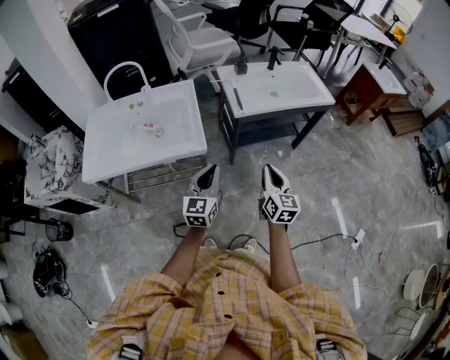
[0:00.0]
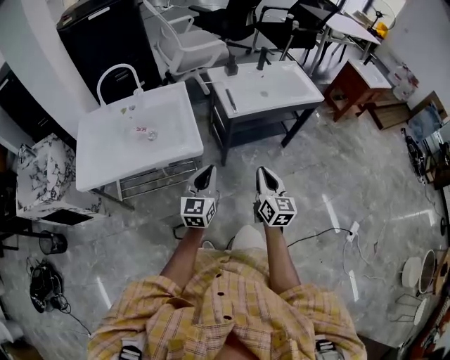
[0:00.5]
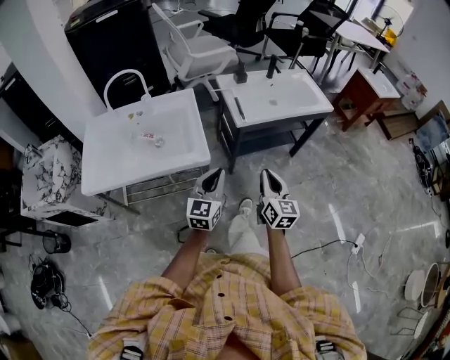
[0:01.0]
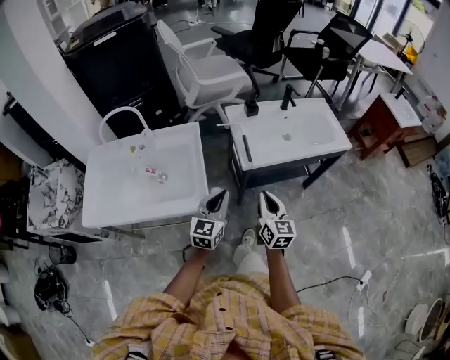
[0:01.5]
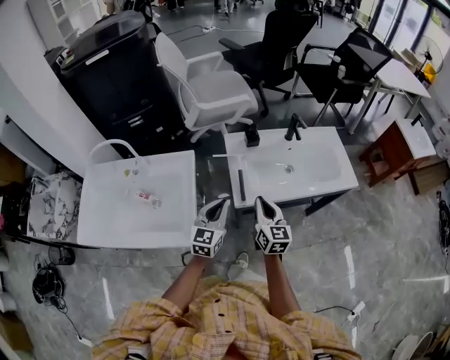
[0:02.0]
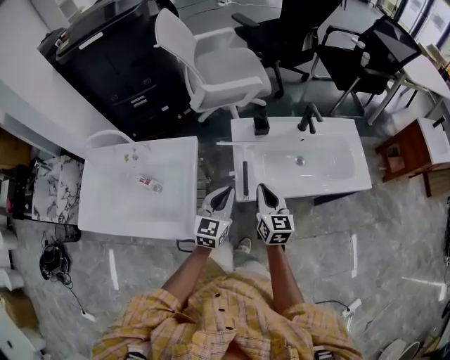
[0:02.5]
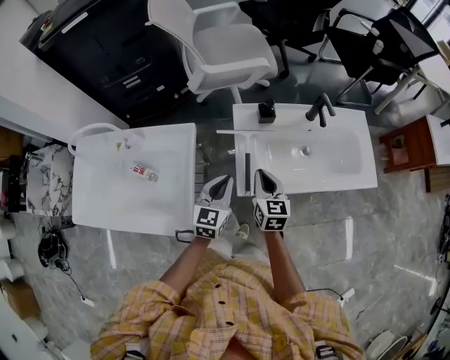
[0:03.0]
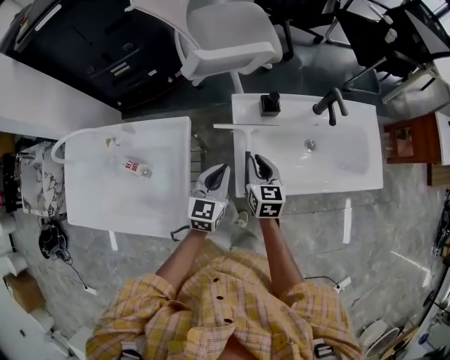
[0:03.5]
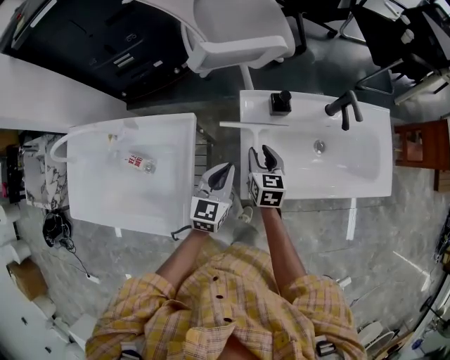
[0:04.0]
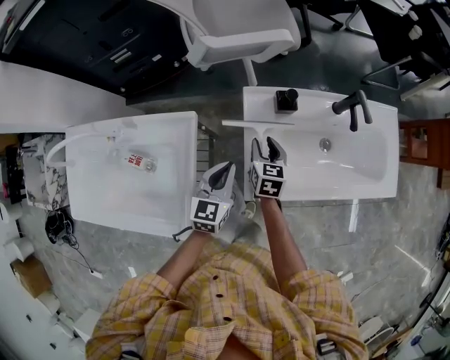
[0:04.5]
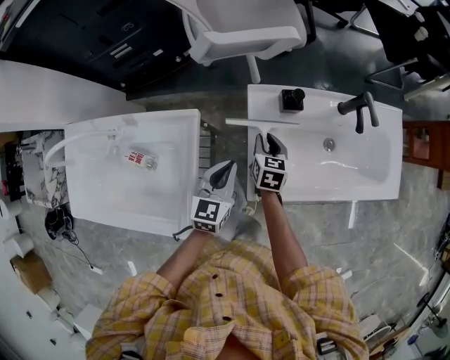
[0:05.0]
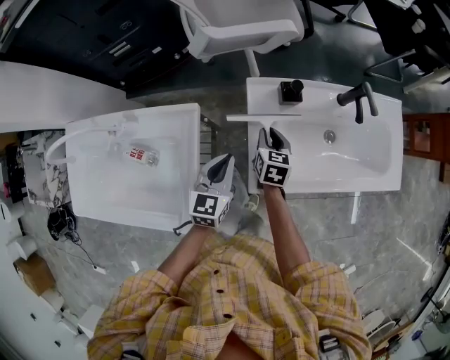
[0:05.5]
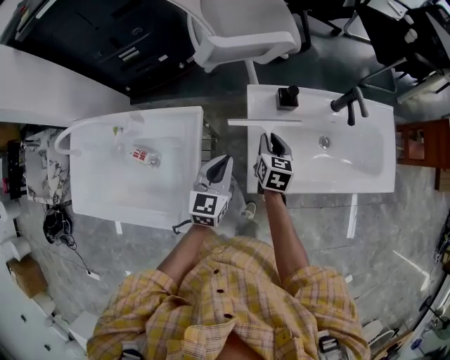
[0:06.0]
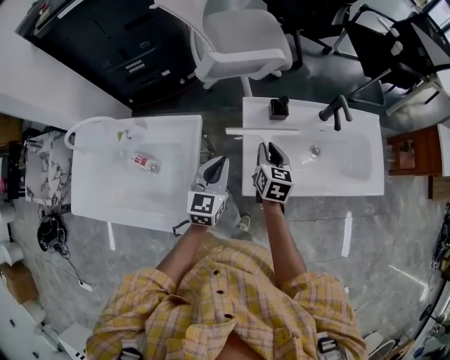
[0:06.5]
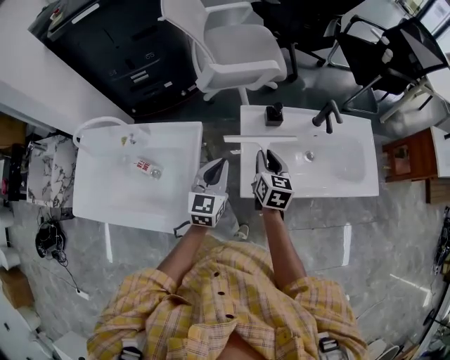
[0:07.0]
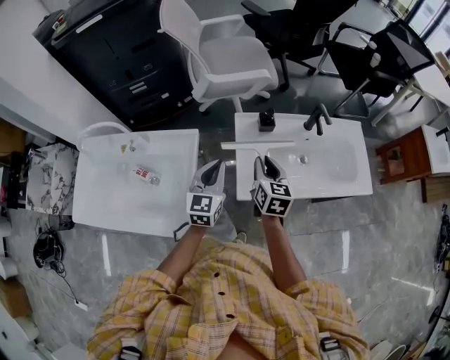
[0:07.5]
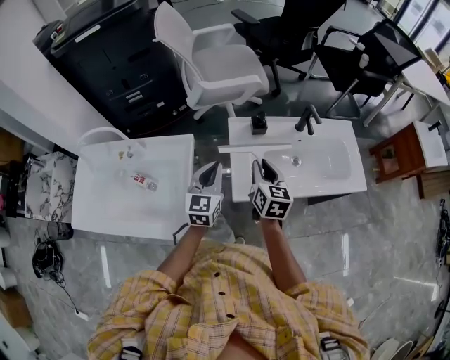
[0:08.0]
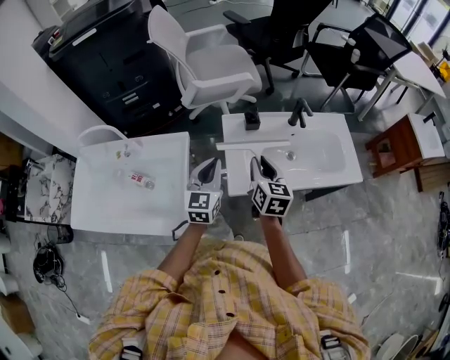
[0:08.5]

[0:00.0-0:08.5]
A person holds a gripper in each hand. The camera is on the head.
0:00.0 to 0:02.0: Both grippers move forward, approximately 35 cm.
0:02.0 to 0:04.0: The grippers both shift forward and downward by approximately 20 cm. The right gripper changes its angle by roughly 20 degrees, and opens its fingers.
0:04.0 to 0:06.5: The grippers both shift upward by about 5 cm.
0:06.5 to 0:08.5: The left gripper travels upward by roughly 10 cm; the right gripper is displaced upward and backward by approximately 15 cm.

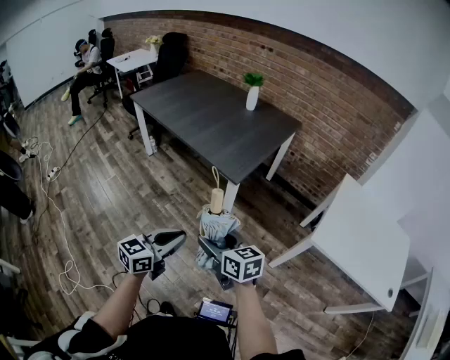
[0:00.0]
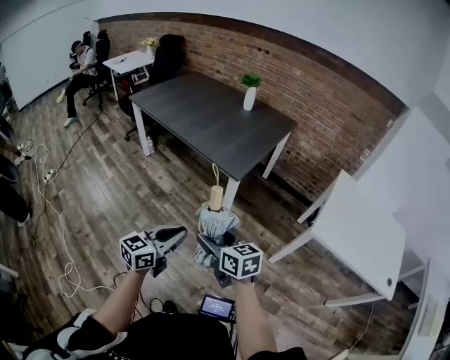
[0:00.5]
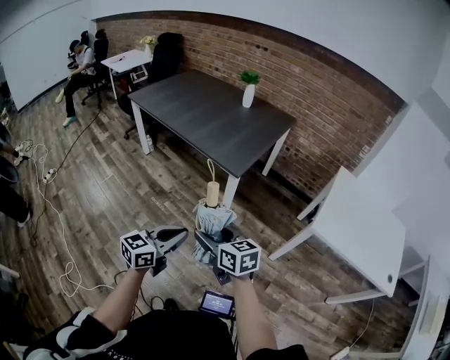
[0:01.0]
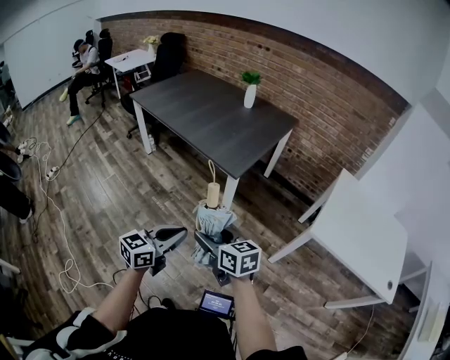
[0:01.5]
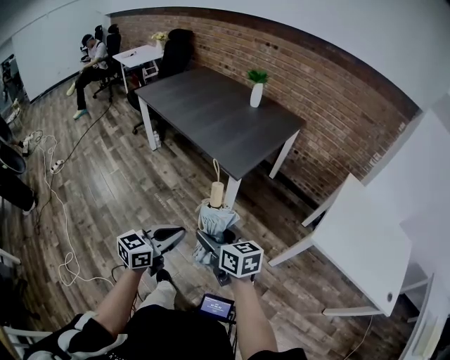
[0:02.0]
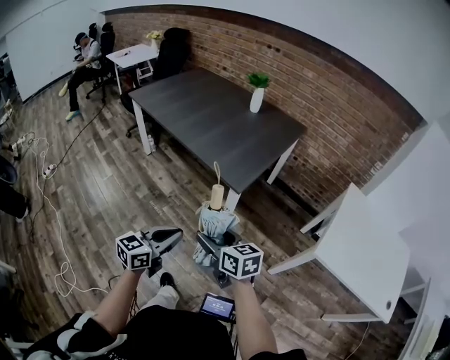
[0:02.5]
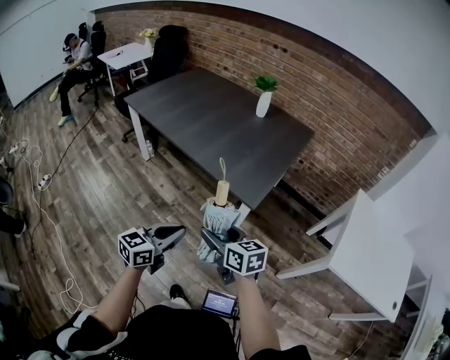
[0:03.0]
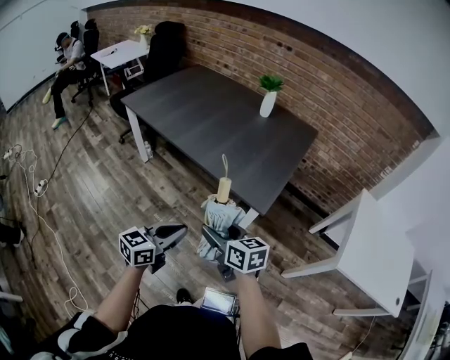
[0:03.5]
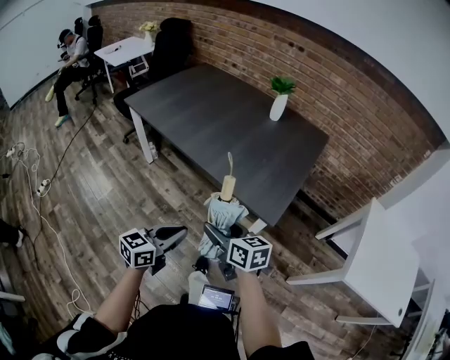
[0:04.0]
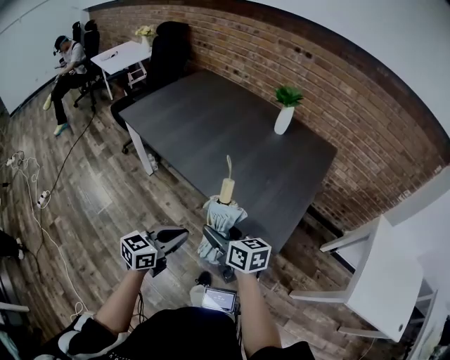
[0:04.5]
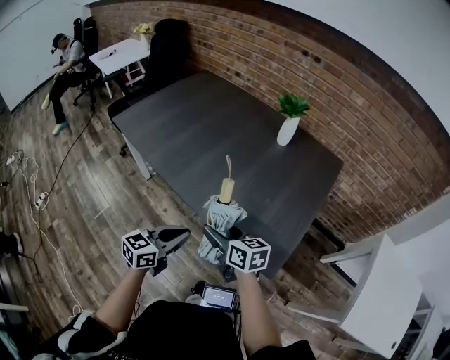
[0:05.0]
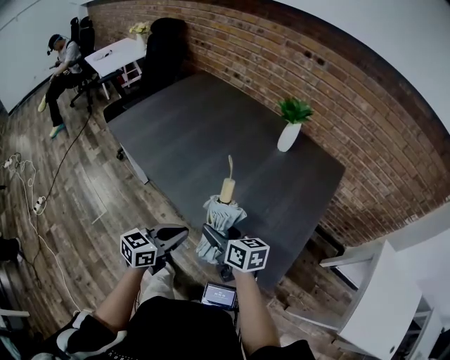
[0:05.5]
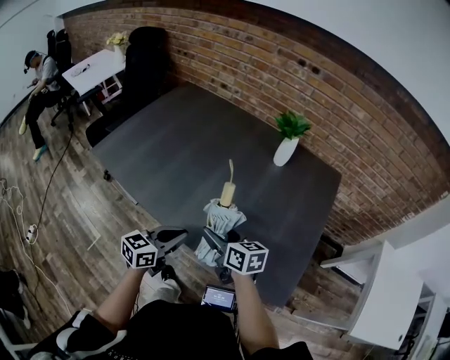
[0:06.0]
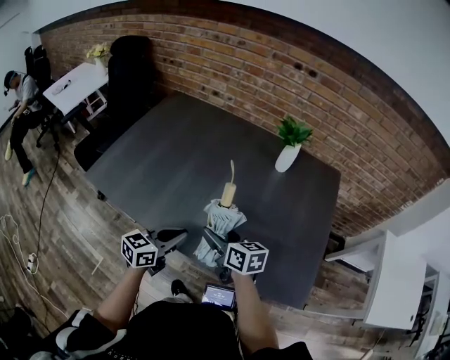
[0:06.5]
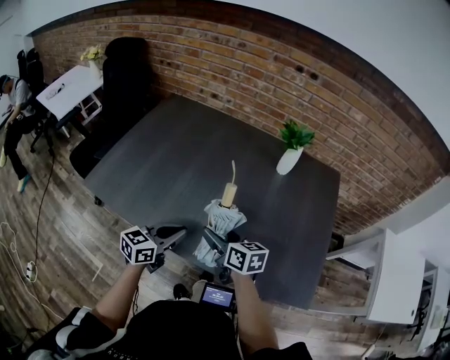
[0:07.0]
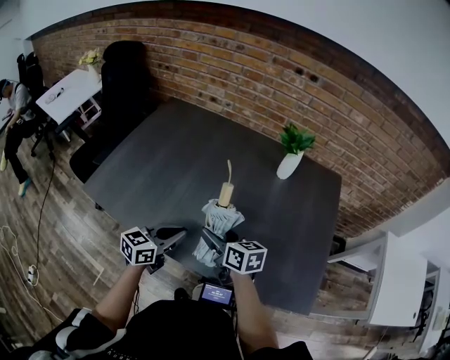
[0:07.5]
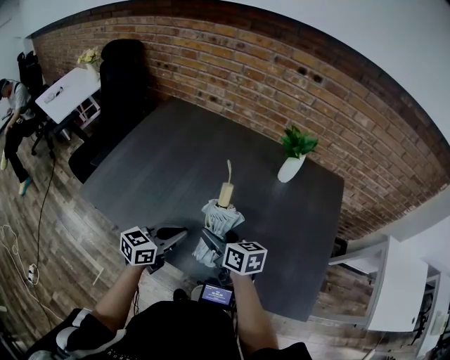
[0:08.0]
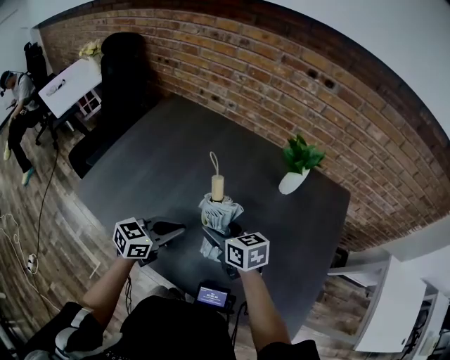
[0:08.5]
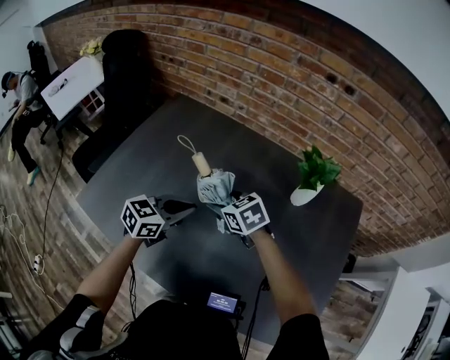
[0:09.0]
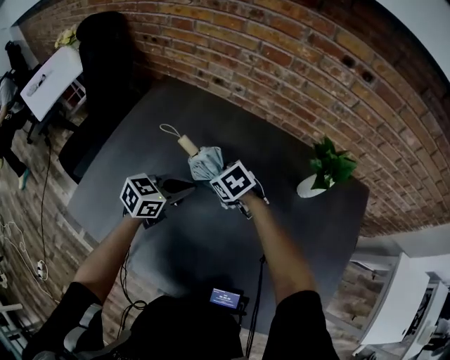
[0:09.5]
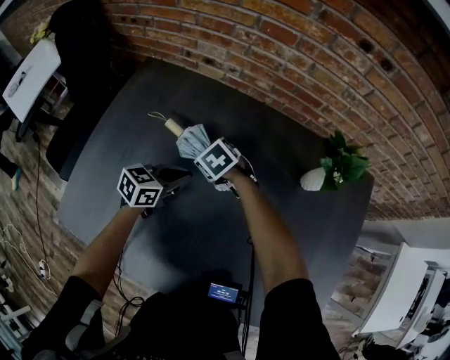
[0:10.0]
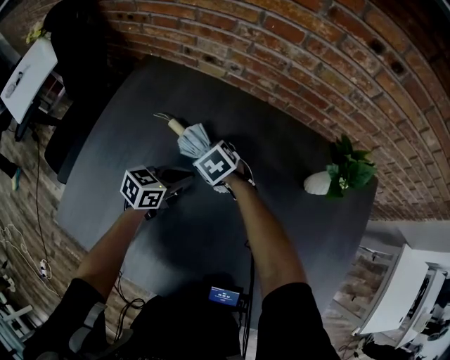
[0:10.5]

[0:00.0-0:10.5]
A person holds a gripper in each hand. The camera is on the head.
0:00.0 to 0:02.0: The grippers make only small movements.
0:02.0 to 0:04.0: Both grippers move forward and to the left, roughly 35 cm.
0:04.0 to 0:06.5: Both grippers are carried forward, approximately 50 cm.
0:06.5 to 0:08.5: The two grippers go approximately 15 cm forward.
0:08.5 to 0:10.5: Both grippers travel together forward and downward, some 35 cm. The right gripper tilts its fingers approximately 30 degrees downward.

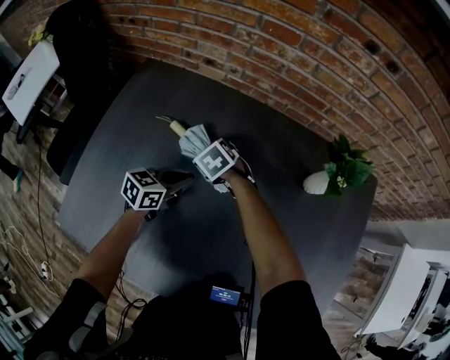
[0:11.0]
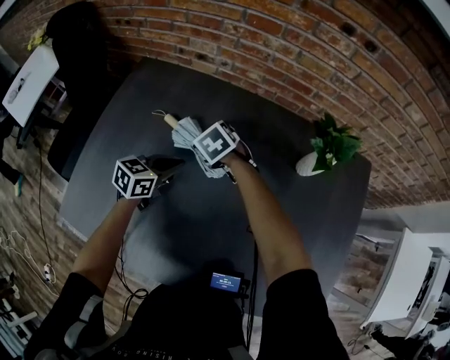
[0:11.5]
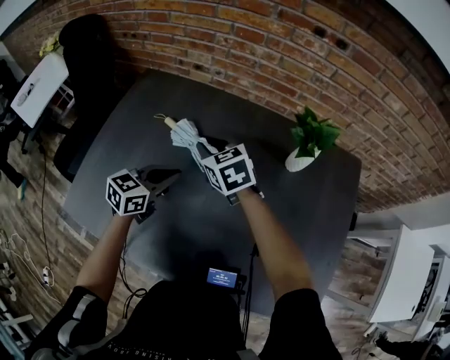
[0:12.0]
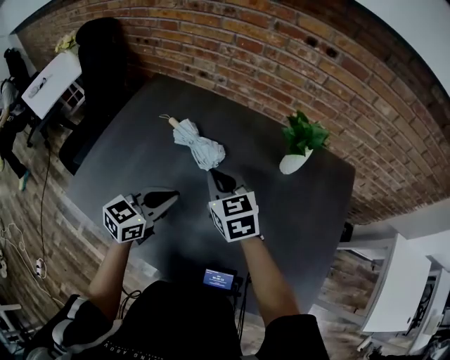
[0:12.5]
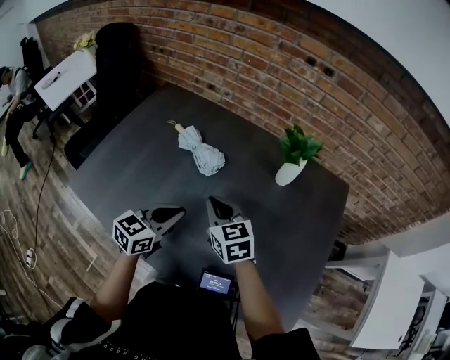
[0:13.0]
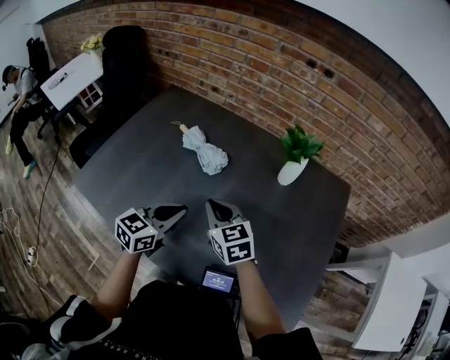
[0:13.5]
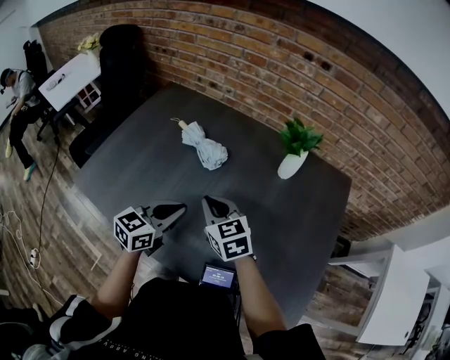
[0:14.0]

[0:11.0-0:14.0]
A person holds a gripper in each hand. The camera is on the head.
0:11.0 to 0:12.5: The right gripper shifts roughly 30 cm upward, backward and to the right, tips its fingers upward by approximately 40 degrees, and closes. Meanwhile the left gripper travels backward and upward by approximately 25 cm, and turns by about 20 degrees.
0:12.5 to 0:14.0: Both grippers travel together backward, roughly 10 cm.

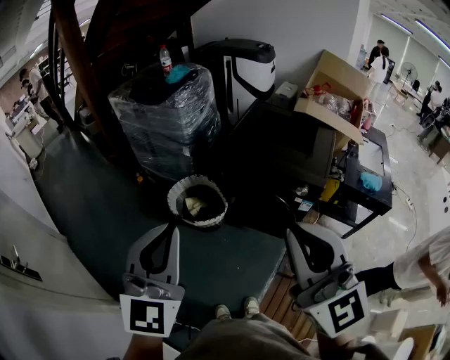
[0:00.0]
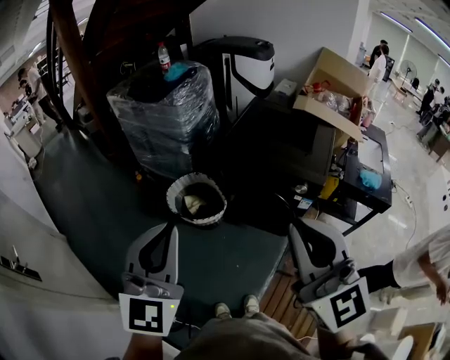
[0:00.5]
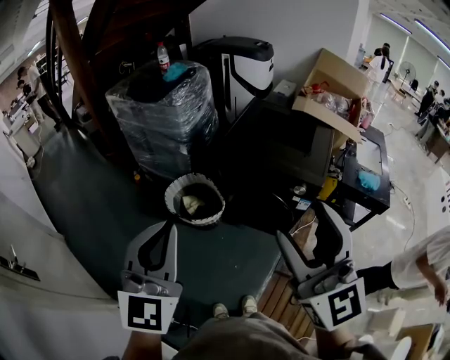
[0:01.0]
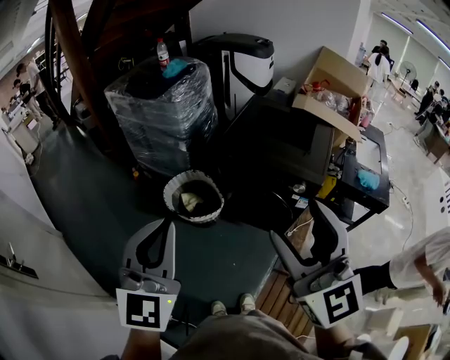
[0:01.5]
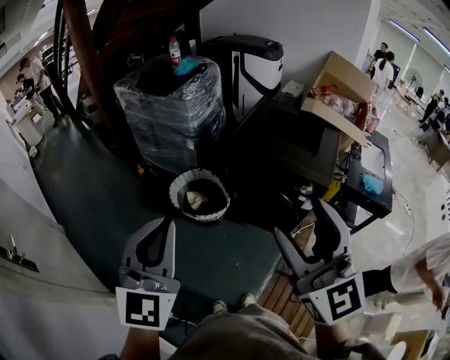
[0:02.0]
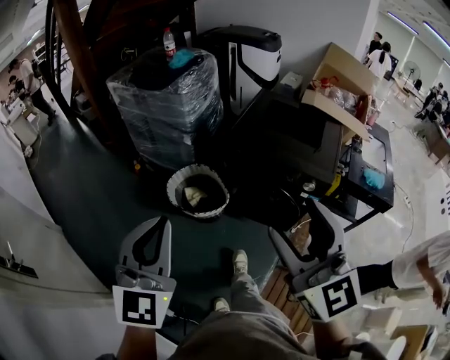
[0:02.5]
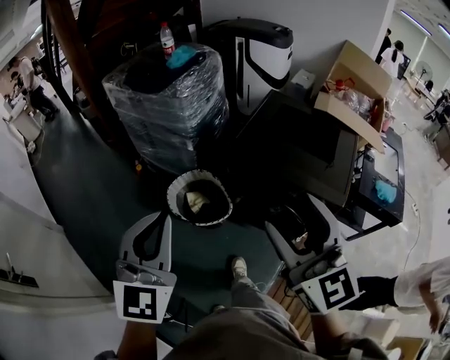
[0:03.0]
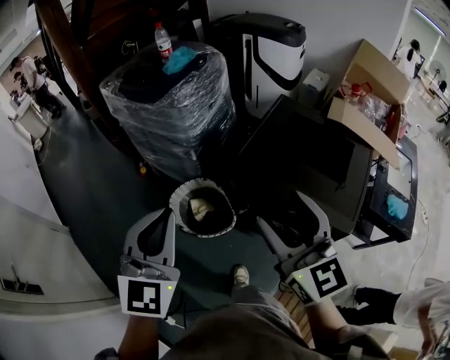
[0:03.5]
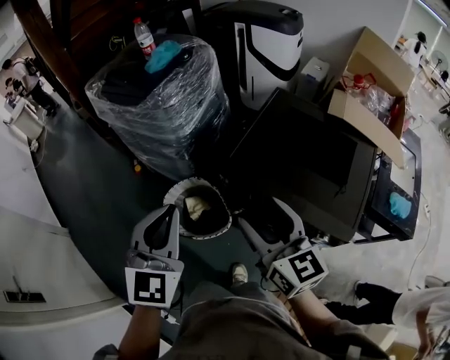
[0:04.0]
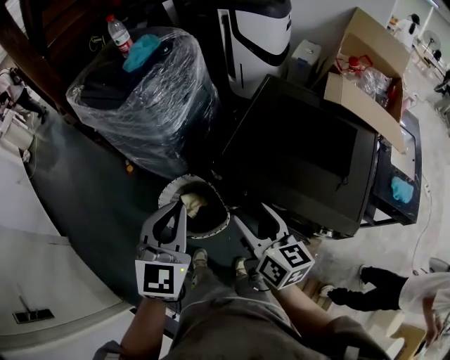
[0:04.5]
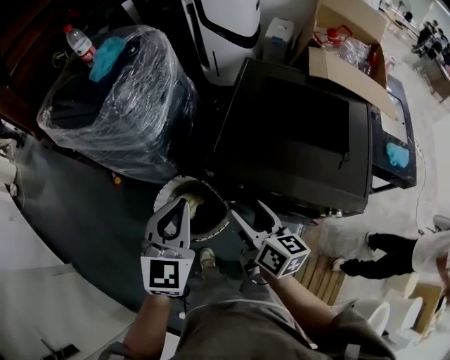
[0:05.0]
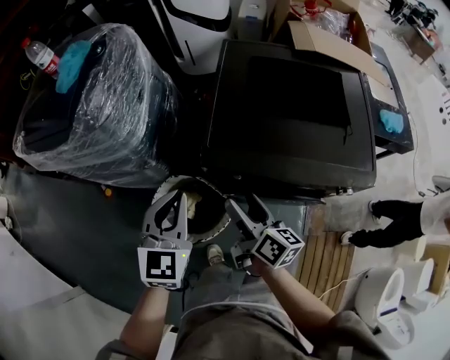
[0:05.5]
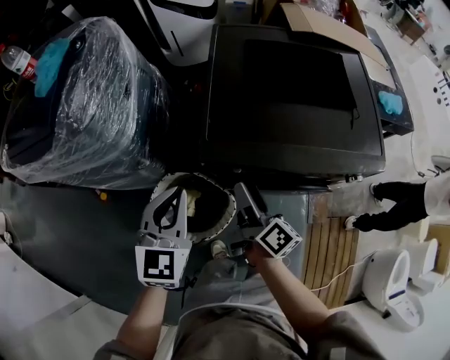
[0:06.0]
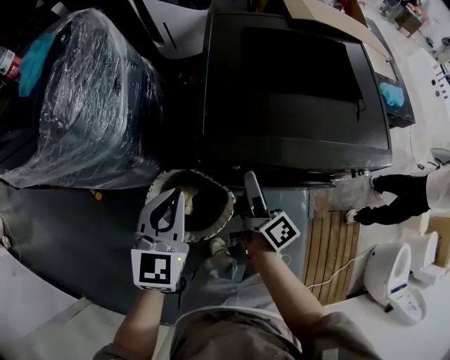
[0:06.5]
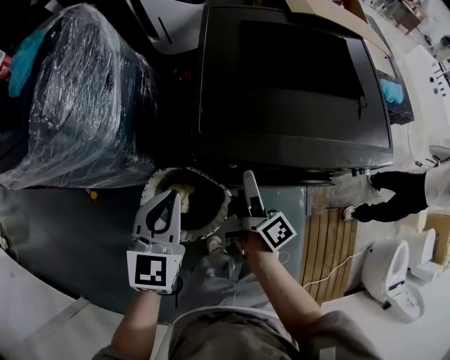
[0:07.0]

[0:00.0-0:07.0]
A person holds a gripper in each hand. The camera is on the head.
0:00.0 to 0:02.0: The right gripper opens up.
0:02.0 to 0:03.5: Both grippers move forward, about 30 cm.
0:03.5 to 0:05.0: The left gripper goes roughly 25 cm forward and downward. The right gripper moves downward and forward, approximately 25 cm, and rotates around the line of its fingers by about 50 degrees, clockwise from behind.
0:05.0 to 0:07.0: The grippers both shift downward by approximately 15 cm. The right gripper rotates about 60 degrees, while the left gripper rotates about 20 degrees.
